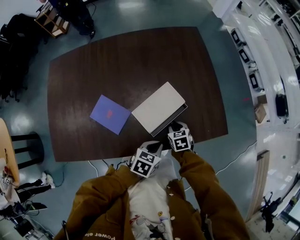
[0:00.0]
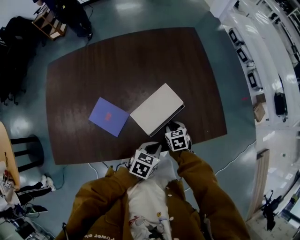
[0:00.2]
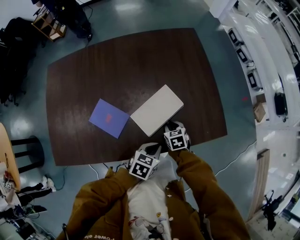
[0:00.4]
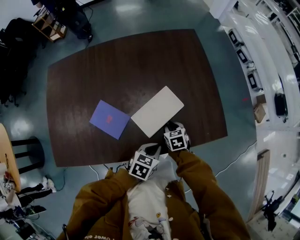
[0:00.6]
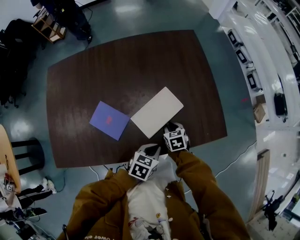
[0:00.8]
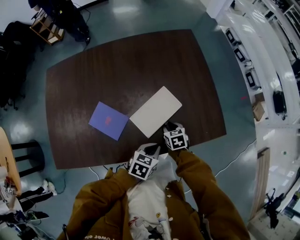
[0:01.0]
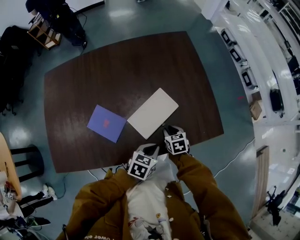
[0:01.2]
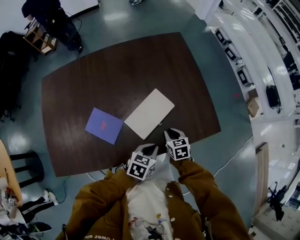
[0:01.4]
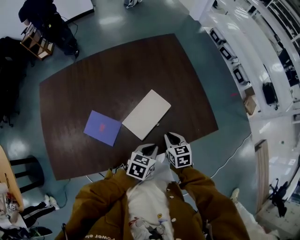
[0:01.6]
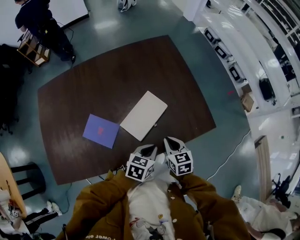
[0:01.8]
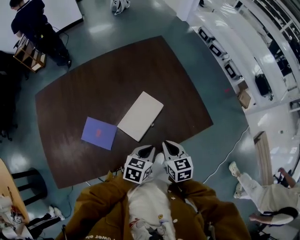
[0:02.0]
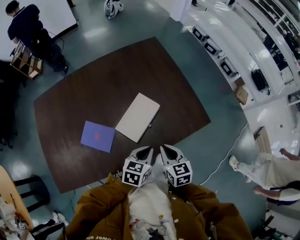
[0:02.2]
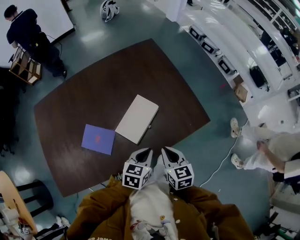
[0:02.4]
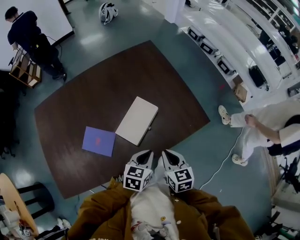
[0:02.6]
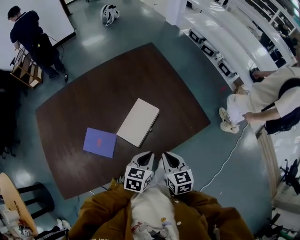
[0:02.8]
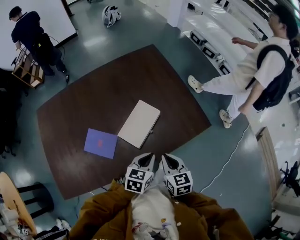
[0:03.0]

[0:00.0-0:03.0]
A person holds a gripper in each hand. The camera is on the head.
0.0 to 1.6 s: The right gripper shifts roughly 10 cm upward.
1.6 to 3.0 s: The left gripper is displaced upward by approximately 5 cm. Meanwhile the right gripper is displaced upward and backward by roughly 15 cm.

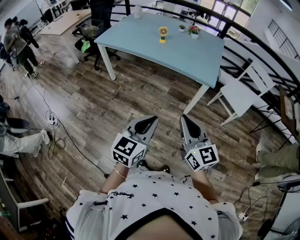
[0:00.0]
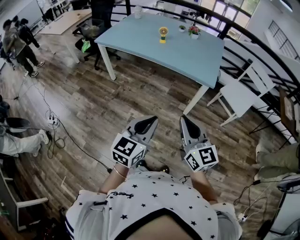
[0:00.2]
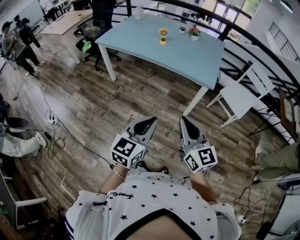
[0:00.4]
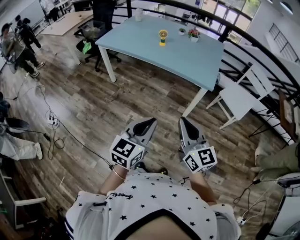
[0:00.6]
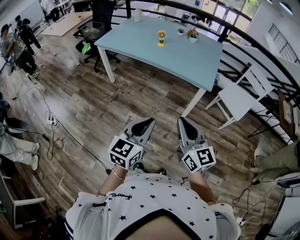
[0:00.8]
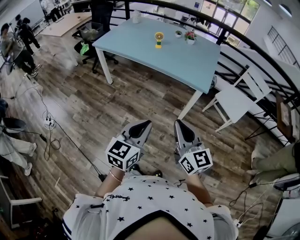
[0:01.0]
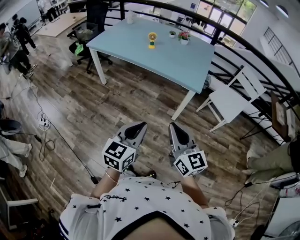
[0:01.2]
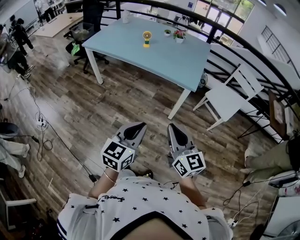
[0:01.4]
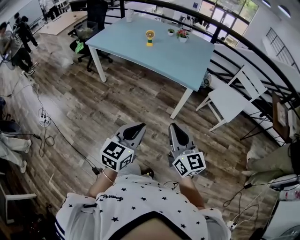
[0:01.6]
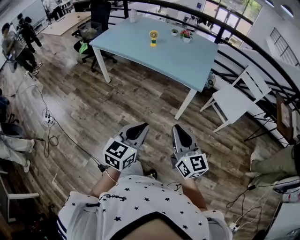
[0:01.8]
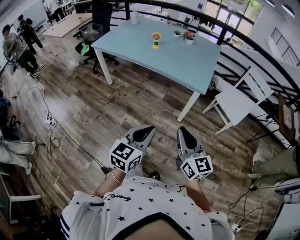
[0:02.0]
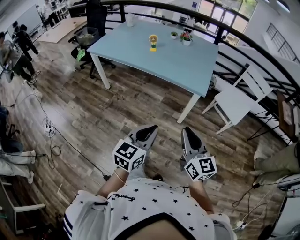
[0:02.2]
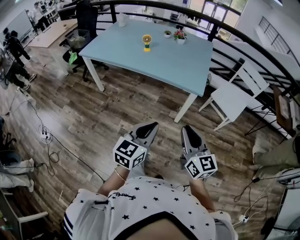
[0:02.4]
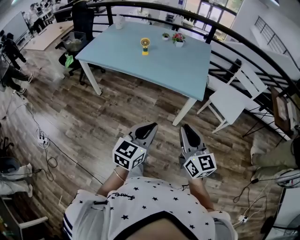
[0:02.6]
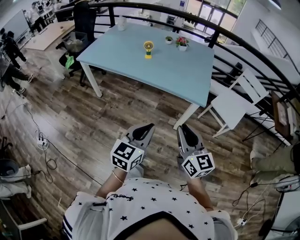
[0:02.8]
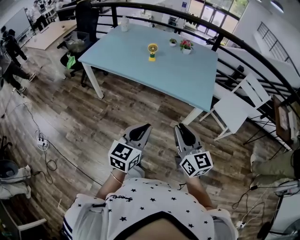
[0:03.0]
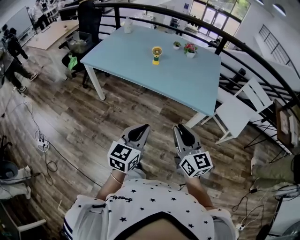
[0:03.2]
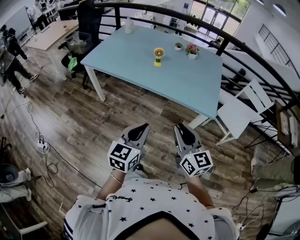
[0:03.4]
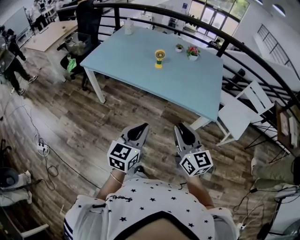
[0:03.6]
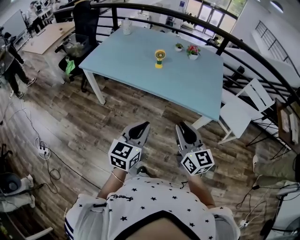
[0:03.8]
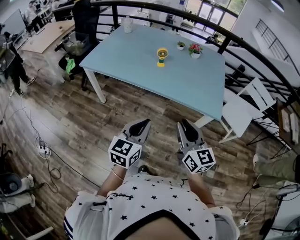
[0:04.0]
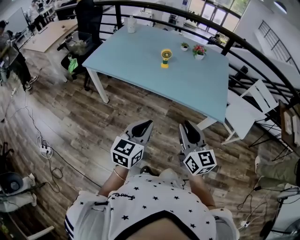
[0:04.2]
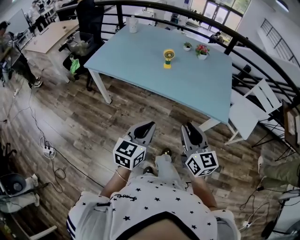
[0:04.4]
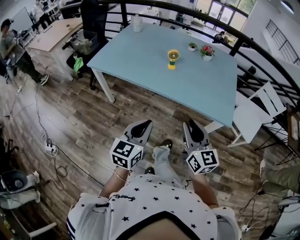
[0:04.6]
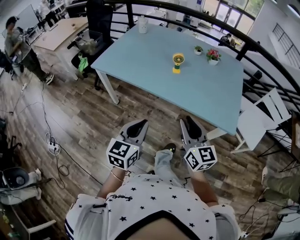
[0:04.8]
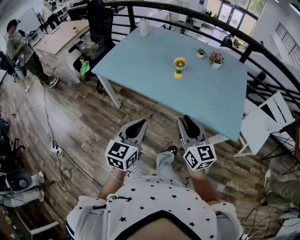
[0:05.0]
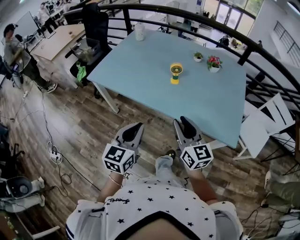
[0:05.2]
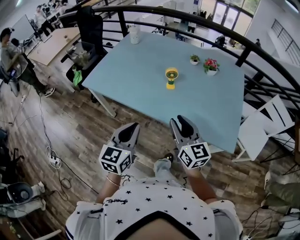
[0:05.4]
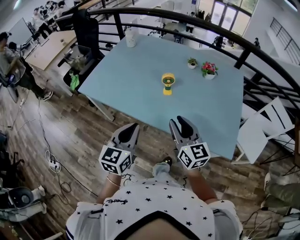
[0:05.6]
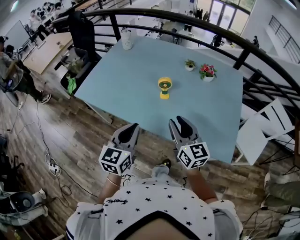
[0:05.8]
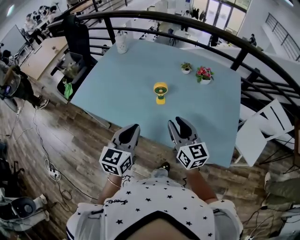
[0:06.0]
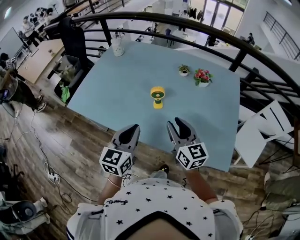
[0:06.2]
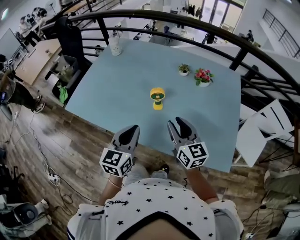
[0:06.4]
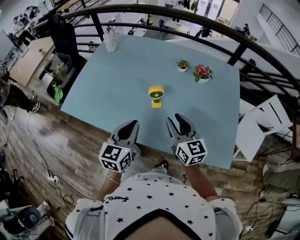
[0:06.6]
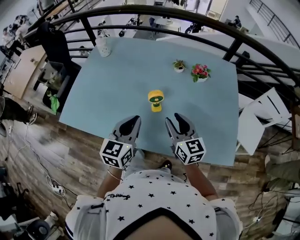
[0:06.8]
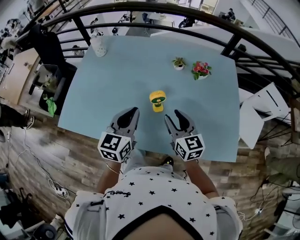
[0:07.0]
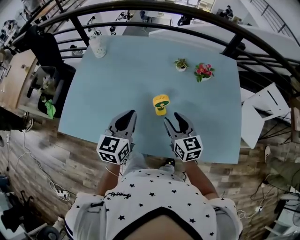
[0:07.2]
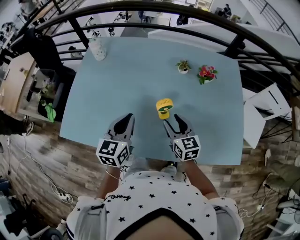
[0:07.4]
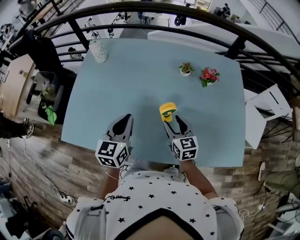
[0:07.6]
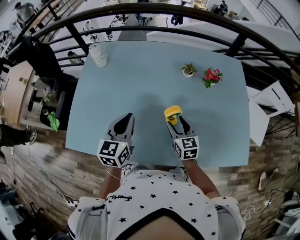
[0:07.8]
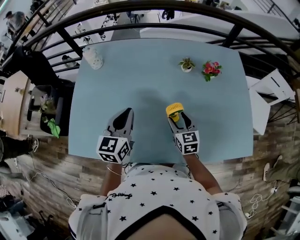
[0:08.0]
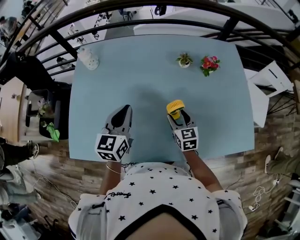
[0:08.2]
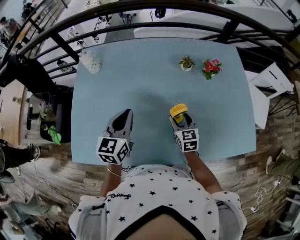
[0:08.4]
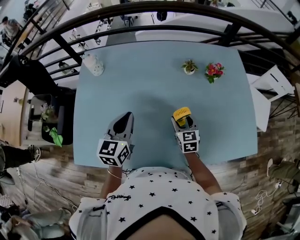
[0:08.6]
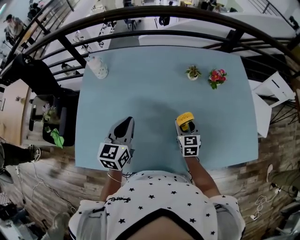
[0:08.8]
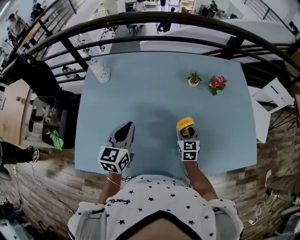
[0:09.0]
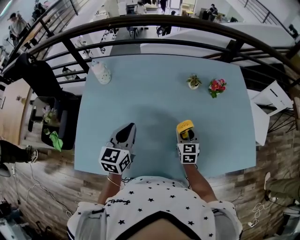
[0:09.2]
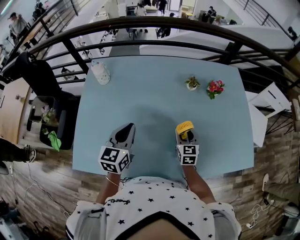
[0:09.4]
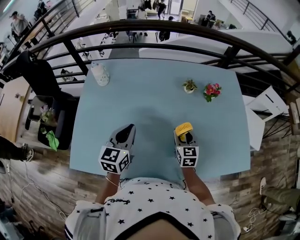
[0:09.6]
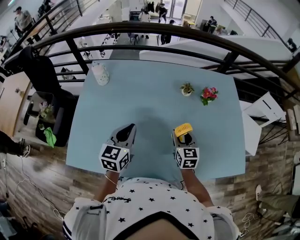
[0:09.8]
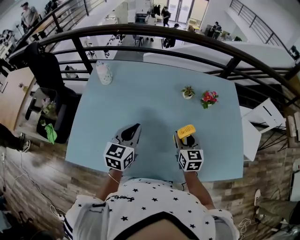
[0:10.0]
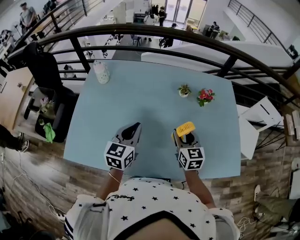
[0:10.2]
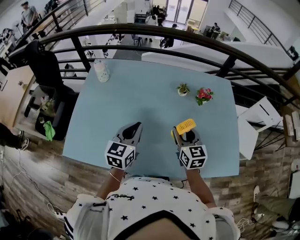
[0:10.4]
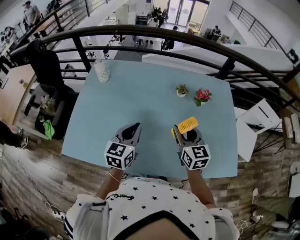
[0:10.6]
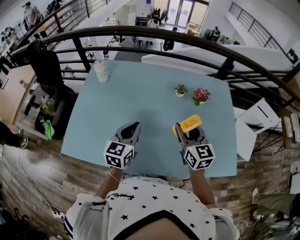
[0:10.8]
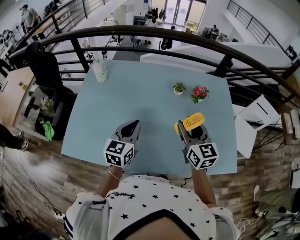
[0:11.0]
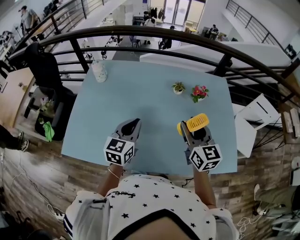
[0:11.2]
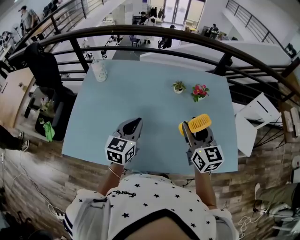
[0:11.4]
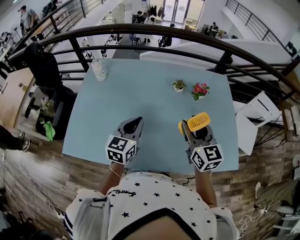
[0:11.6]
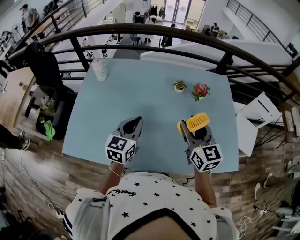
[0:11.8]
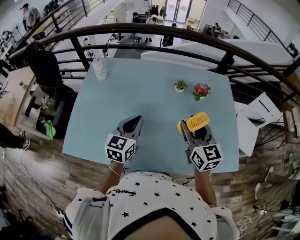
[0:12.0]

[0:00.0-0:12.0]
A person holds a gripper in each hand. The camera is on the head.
0.0 to 1.6 s: Both grippers move to the right, approximately 10 cm.
1.6 to 3.0 s: The grippers both shift forward and to the left by approximately 20 cm.
3.0 to 4.4 s: The two grippers go about 15 cm forward and to the left.
4.4 to 6.0 s: Both grippers move forward, about 30 cm.
6.0 to 7.6 s: The left gripper heads forward and to the left, covering about 20 cm, while the right gripper moves forward, downward and to the left, roughly 20 cm, swivels roughly 30 degrees, and opens.
7.6 to 9.0 s: The right gripper heads downward and forward, covering approximately 10 cm, and rotates some 20 degrees. The left gripper heads to the left and forward, covering some 10 cm.
9.0 to 10.4 s: The left gripper heads to the right, covering some 10 cm, while the right gripper is displaced upward by approximately 15 cm.
10.4 to 12.0 s: The right gripper travels upward by approximately 10 cm.

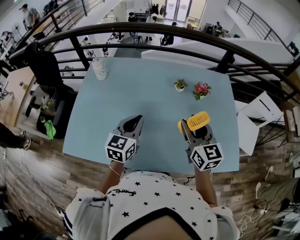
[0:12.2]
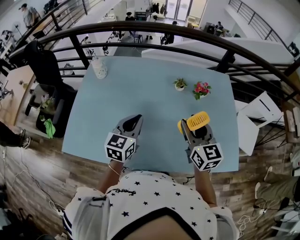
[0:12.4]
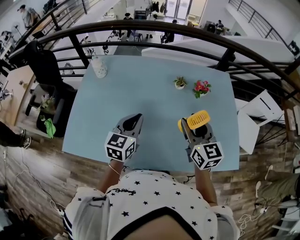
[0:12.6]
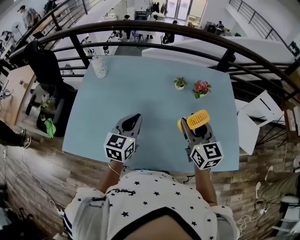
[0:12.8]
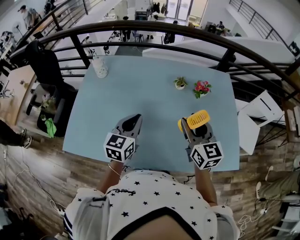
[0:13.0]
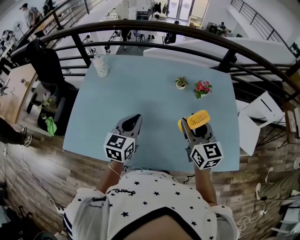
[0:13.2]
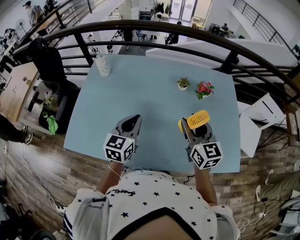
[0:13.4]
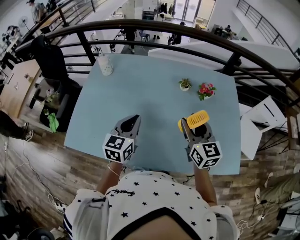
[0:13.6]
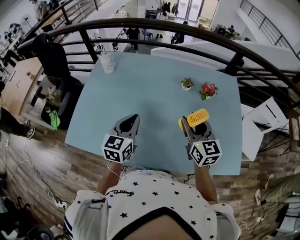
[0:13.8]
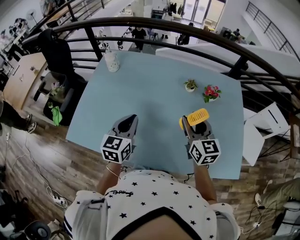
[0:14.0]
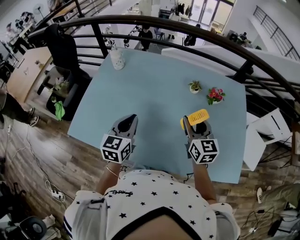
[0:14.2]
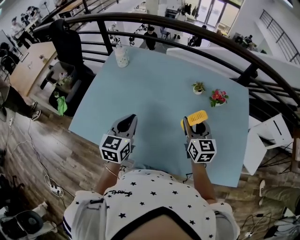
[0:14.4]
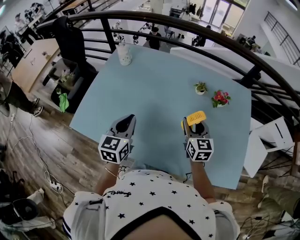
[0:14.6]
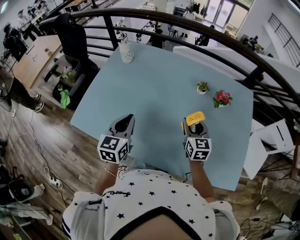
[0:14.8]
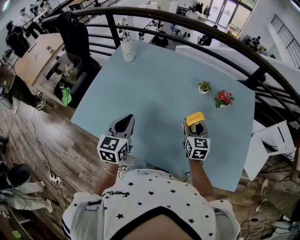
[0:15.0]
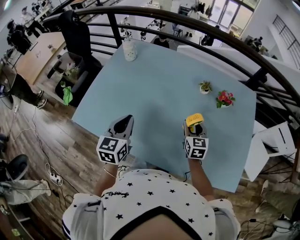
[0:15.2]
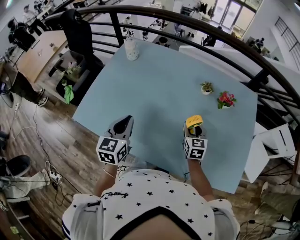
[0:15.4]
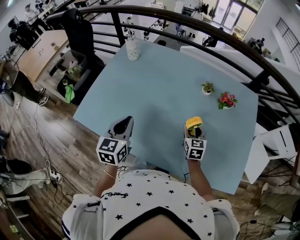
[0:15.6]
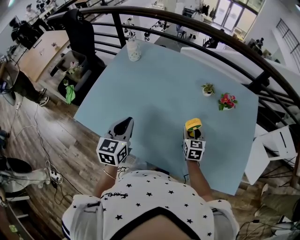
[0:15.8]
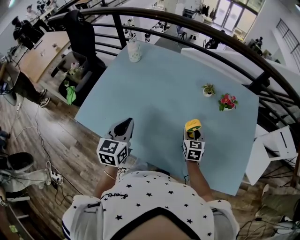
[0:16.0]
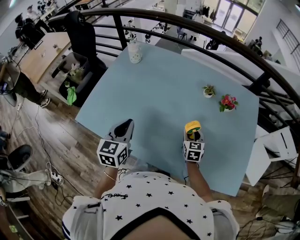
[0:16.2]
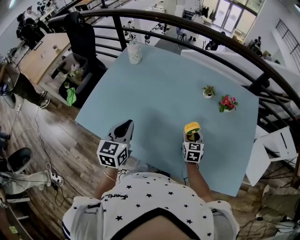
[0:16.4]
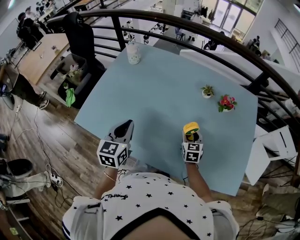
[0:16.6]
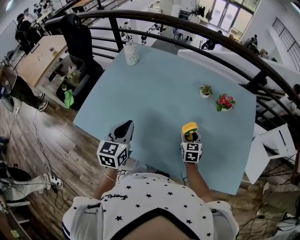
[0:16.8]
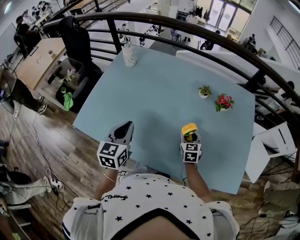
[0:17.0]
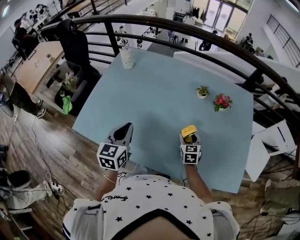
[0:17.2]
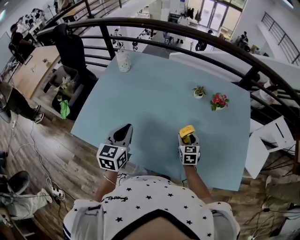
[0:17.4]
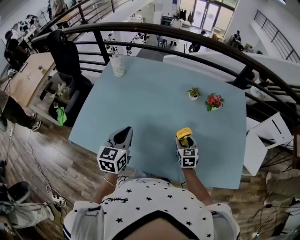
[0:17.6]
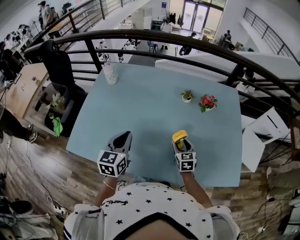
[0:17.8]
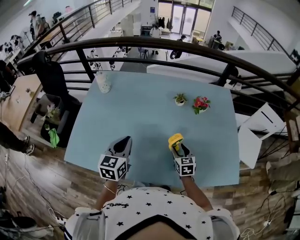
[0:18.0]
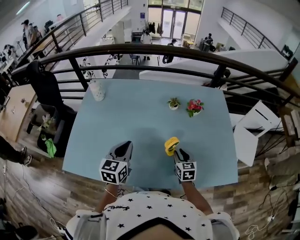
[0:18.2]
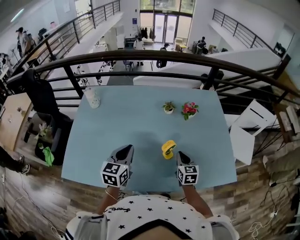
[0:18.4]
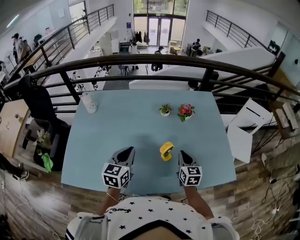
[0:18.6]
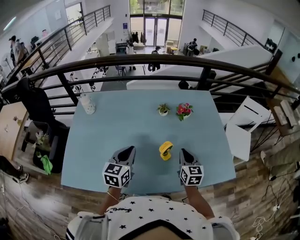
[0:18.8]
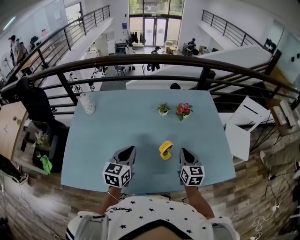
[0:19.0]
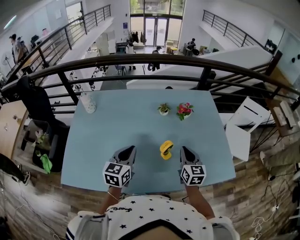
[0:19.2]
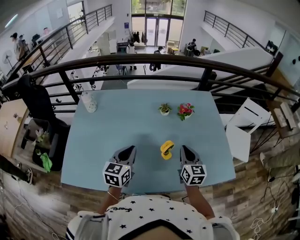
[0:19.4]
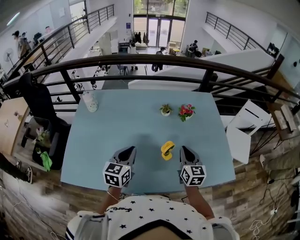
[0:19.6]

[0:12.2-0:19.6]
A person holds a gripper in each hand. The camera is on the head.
12.2 to 13.6 s: There are only small adjustments of the grippers.
13.6 to 15.2 s: The left gripper heads to the left, covering approximately 5 cm. Meanwhile the right gripper goes approximately 15 cm downward.
15.2 to 16.6 s: The right gripper travels downward by some 5 cm.
16.6 to 18.2 s: The right gripper moves backward, some 5 cm, while the left gripper shifts roughly 5 cm to the right.
18.2 to 19.6 s: The right gripper shifts some 15 cm upward, turns by some 20 degrees, and closes.

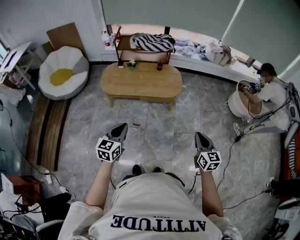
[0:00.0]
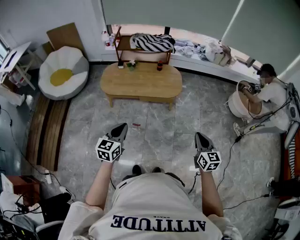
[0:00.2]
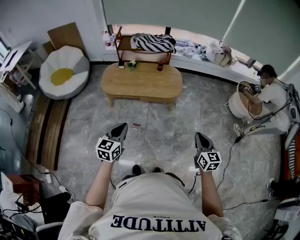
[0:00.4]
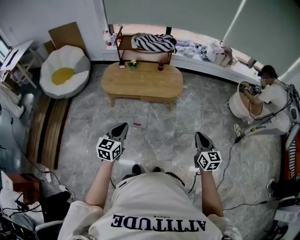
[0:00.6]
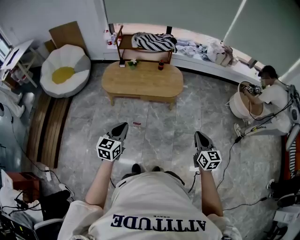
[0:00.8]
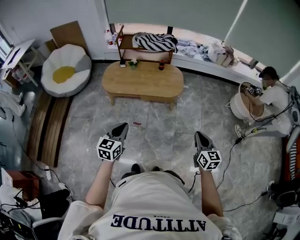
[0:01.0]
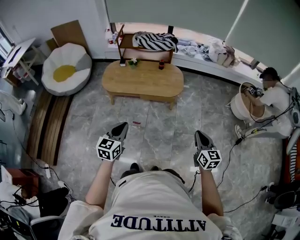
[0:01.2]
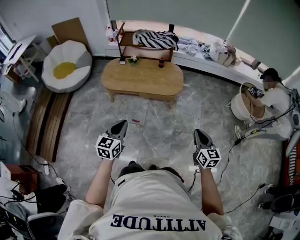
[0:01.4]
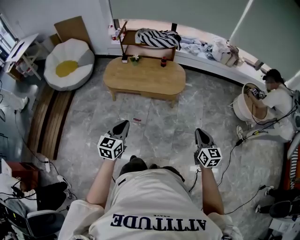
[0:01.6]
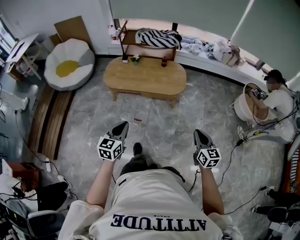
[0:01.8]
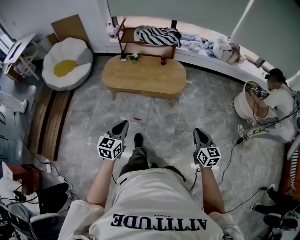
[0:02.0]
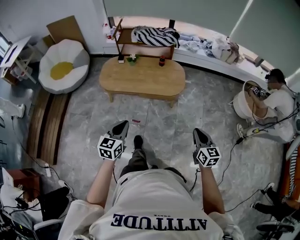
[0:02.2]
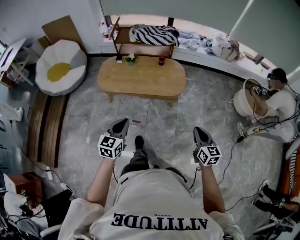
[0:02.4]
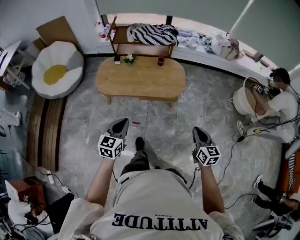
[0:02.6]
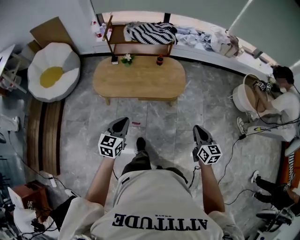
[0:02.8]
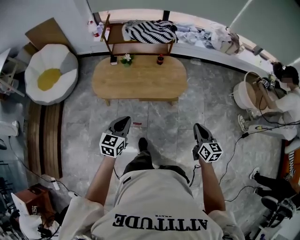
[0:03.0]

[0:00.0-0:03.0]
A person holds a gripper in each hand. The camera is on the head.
0.0 to 1.6 s: The left gripper moves to the right, some 5 cm. The right gripper moves roughly 5 cm.
1.6 to 3.0 s: The right gripper heads forward and to the left, covering some 25 cm; the left gripper goes approximately 25 cm forward.
